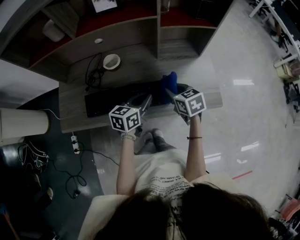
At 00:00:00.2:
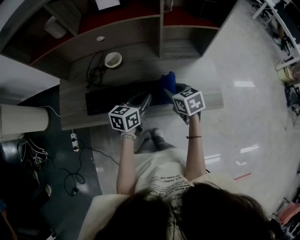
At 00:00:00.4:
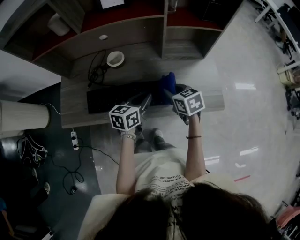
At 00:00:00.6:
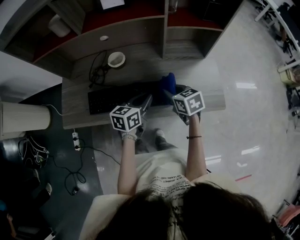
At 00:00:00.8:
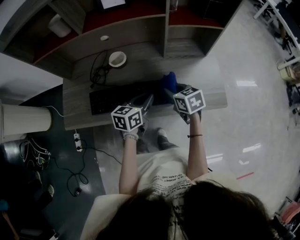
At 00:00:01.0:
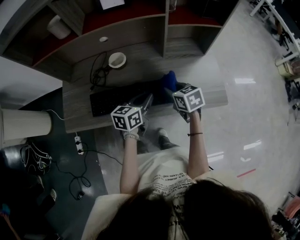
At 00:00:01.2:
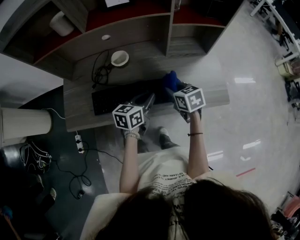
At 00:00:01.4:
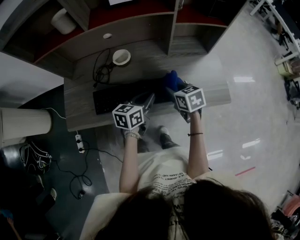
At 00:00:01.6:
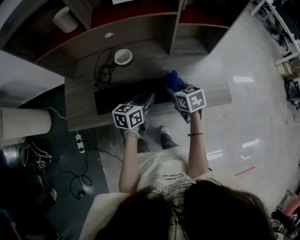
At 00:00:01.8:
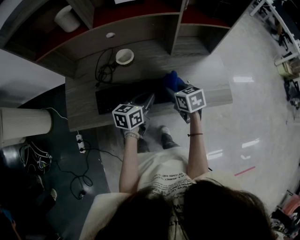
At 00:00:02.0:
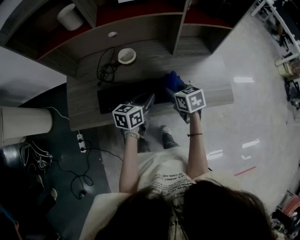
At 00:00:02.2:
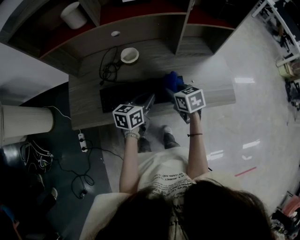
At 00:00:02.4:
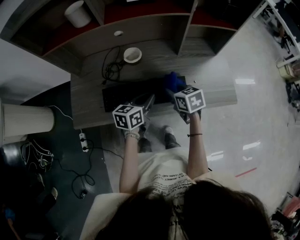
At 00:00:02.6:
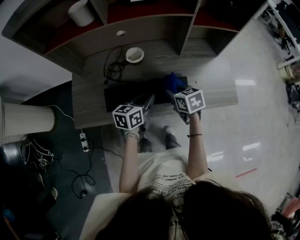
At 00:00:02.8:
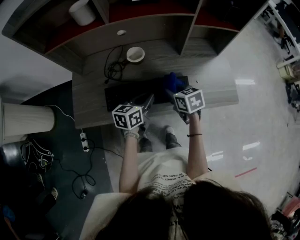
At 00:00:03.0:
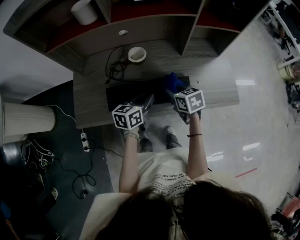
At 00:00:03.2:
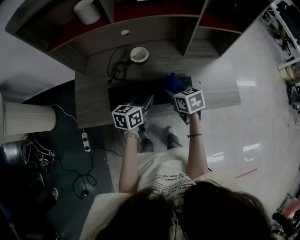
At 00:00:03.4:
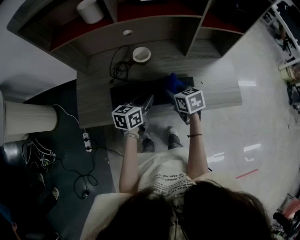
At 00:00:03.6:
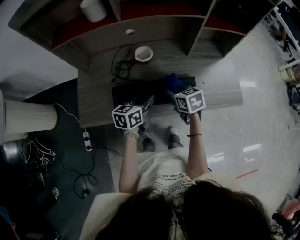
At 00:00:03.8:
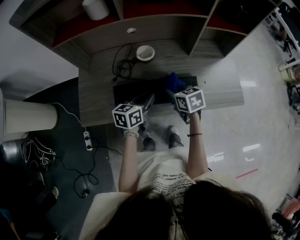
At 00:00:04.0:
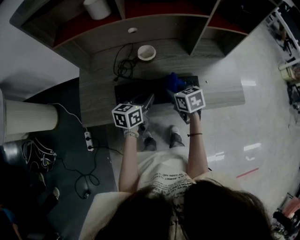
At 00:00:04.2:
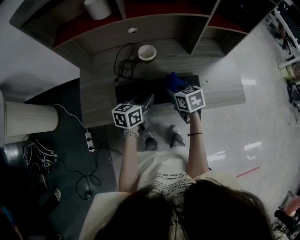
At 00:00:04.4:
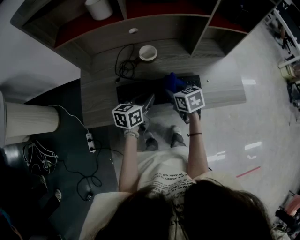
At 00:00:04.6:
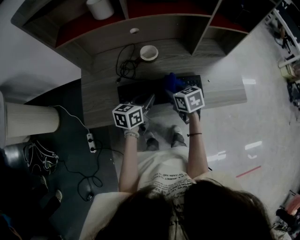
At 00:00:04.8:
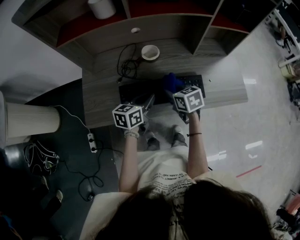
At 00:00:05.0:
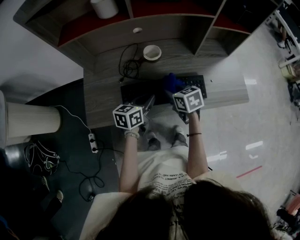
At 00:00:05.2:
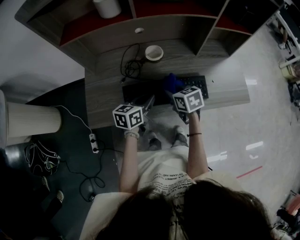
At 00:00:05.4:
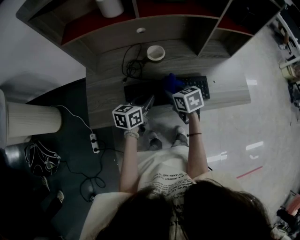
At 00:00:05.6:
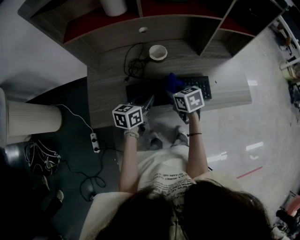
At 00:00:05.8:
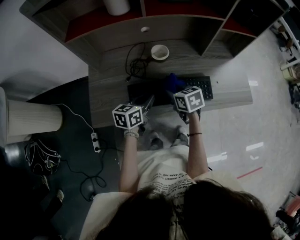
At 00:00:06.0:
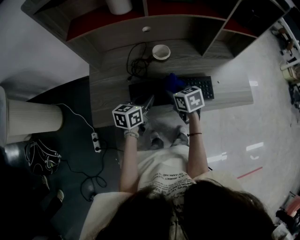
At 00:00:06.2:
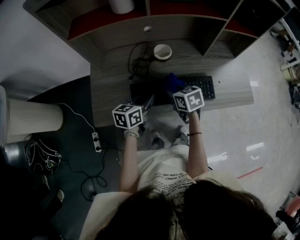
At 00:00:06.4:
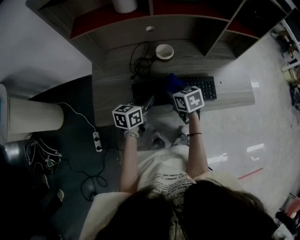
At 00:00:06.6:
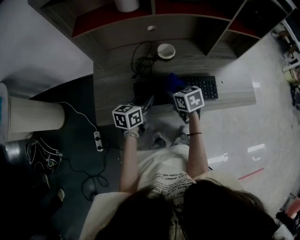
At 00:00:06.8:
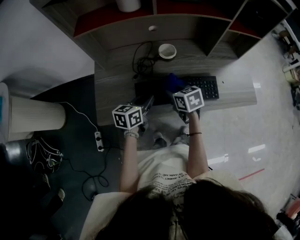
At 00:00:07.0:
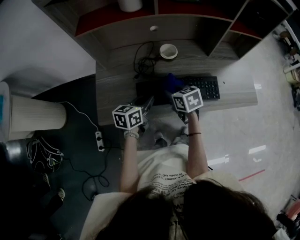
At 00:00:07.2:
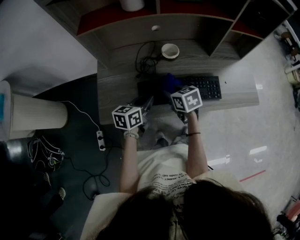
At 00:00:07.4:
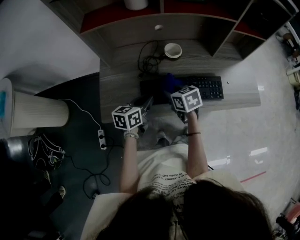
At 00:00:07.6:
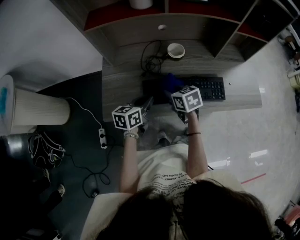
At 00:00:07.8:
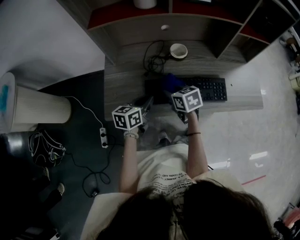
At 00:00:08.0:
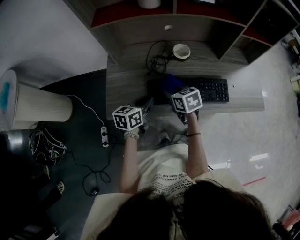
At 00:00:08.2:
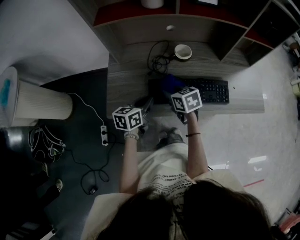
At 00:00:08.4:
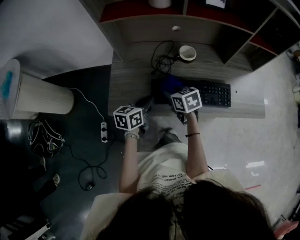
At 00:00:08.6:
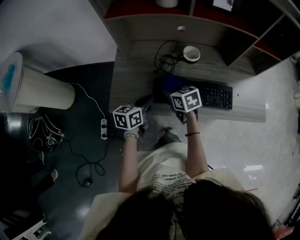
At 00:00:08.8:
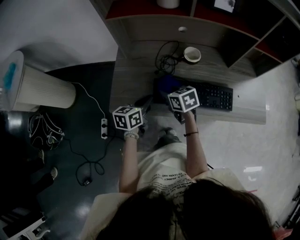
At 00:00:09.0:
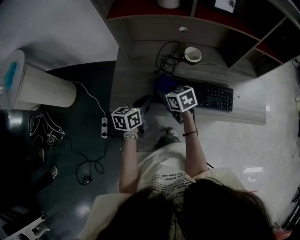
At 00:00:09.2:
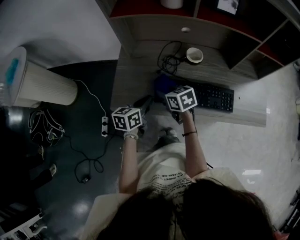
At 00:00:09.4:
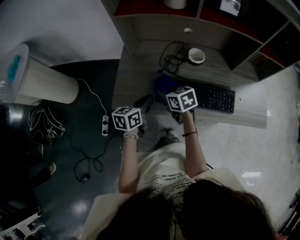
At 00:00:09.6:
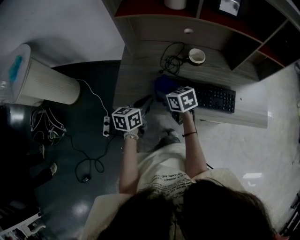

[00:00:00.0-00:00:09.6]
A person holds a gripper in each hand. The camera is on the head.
00:00:00.0 to 00:00:01.6: Both grippers travel together to the left, some 5 cm.
00:00:01.6 to 00:00:03.2: Both grippers move to the left, some 10 cm.
00:00:03.2 to 00:00:04.8: The two grippers go some 5 cm to the left.
00:00:04.8 to 00:00:06.4: Both grippers travel together to the left, roughly 5 cm.
00:00:06.4 to 00:00:08.0: Both grippers move to the left, roughly 10 cm.
00:00:08.0 to 00:00:09.6: The right gripper is displaced to the left by some 10 cm, while the left gripper changes place by roughly 5 cm.

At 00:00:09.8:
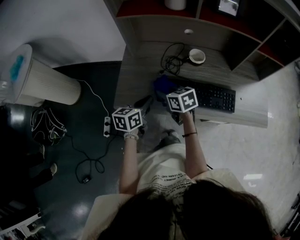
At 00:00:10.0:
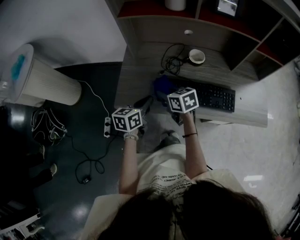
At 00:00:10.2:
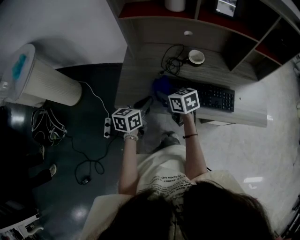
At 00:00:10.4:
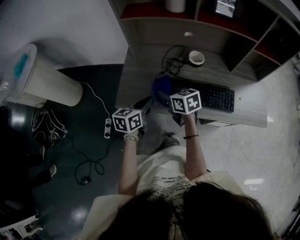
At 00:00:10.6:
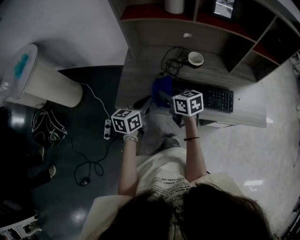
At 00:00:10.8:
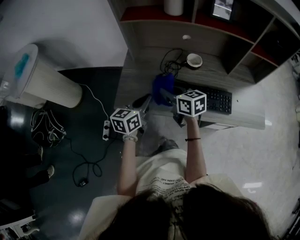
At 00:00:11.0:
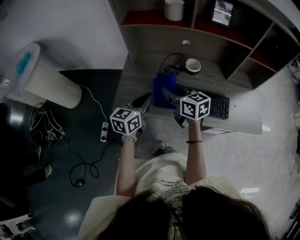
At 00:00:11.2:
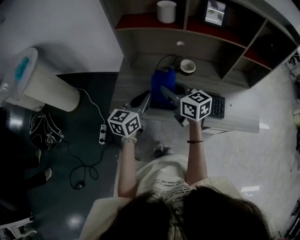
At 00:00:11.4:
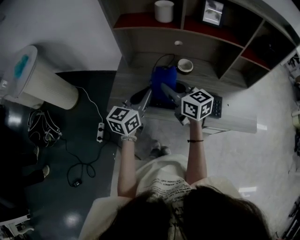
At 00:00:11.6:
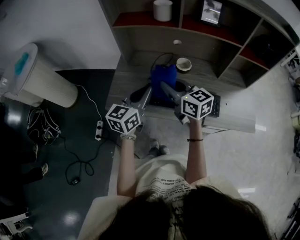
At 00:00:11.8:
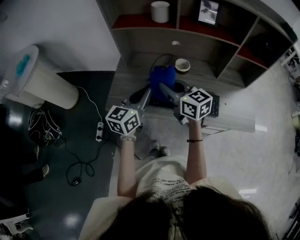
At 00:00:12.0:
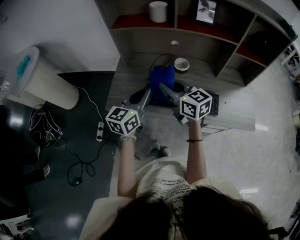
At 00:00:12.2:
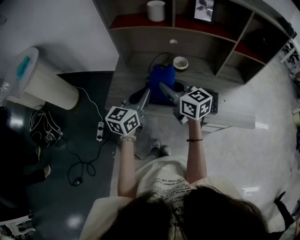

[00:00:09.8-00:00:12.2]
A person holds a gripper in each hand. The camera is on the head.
00:00:09.8 to 00:00:11.0: Both grippers travel together upward, about 10 cm. The right gripper swivels roughly 20 degrees.
00:00:11.0 to 00:00:12.2: The two grippers go approximately 10 cm upward and to the right.

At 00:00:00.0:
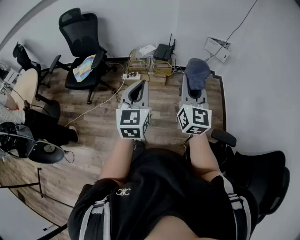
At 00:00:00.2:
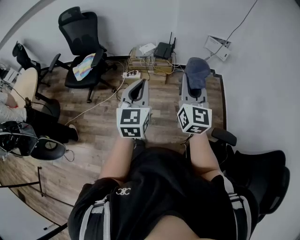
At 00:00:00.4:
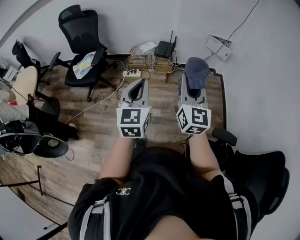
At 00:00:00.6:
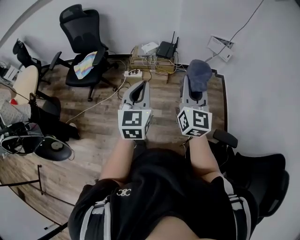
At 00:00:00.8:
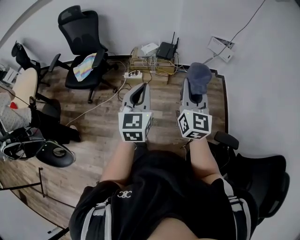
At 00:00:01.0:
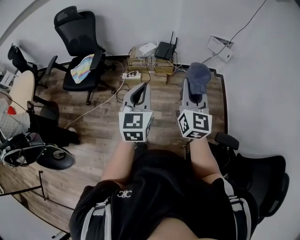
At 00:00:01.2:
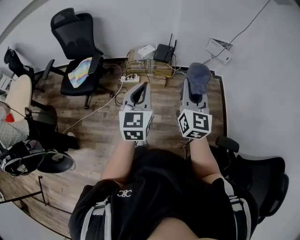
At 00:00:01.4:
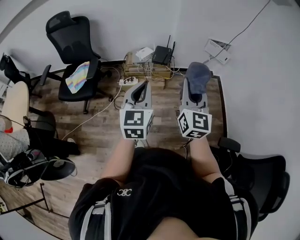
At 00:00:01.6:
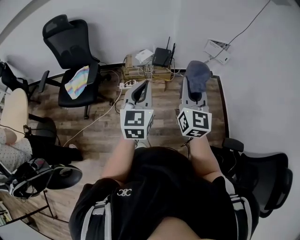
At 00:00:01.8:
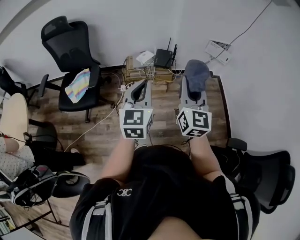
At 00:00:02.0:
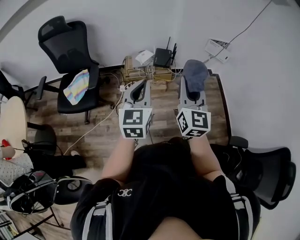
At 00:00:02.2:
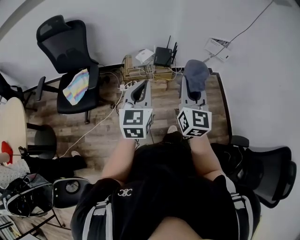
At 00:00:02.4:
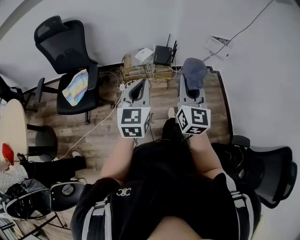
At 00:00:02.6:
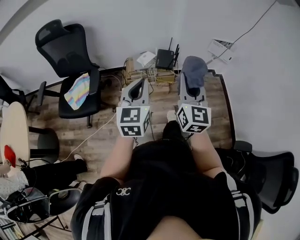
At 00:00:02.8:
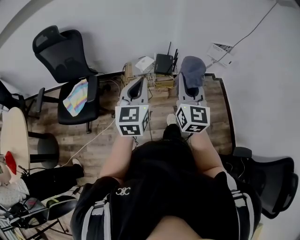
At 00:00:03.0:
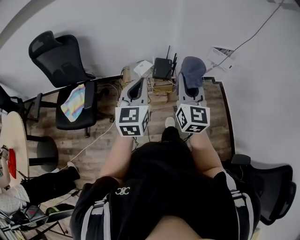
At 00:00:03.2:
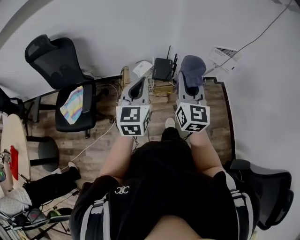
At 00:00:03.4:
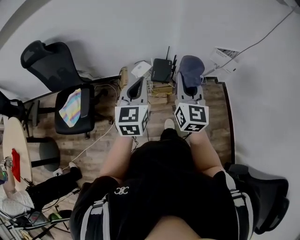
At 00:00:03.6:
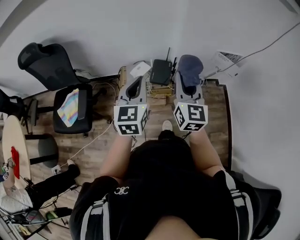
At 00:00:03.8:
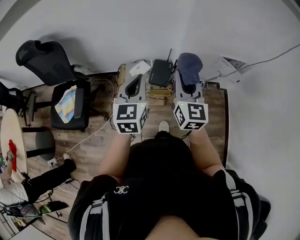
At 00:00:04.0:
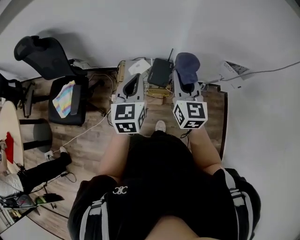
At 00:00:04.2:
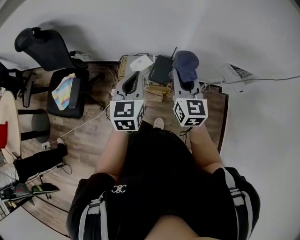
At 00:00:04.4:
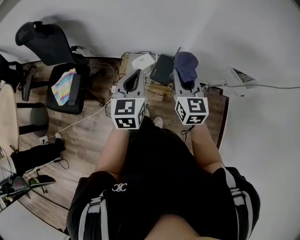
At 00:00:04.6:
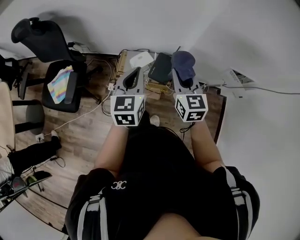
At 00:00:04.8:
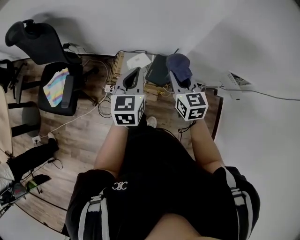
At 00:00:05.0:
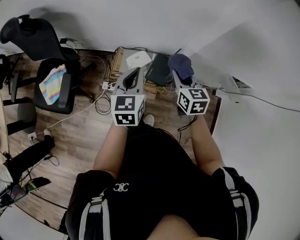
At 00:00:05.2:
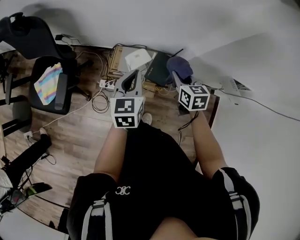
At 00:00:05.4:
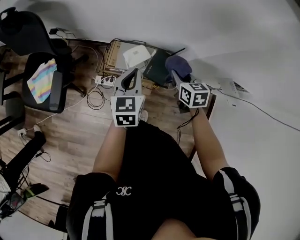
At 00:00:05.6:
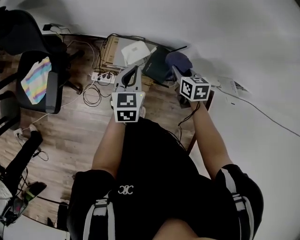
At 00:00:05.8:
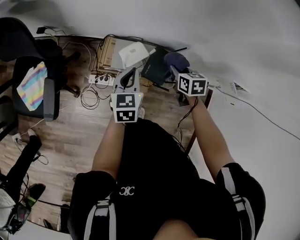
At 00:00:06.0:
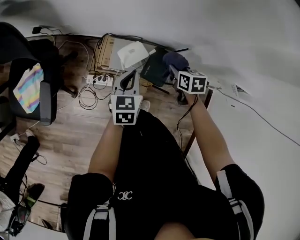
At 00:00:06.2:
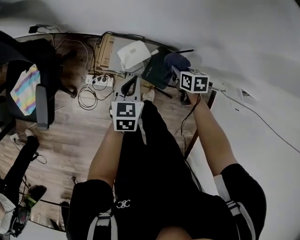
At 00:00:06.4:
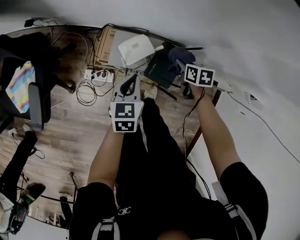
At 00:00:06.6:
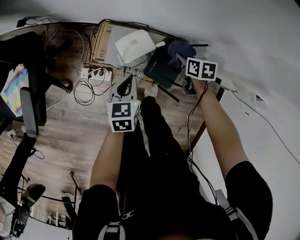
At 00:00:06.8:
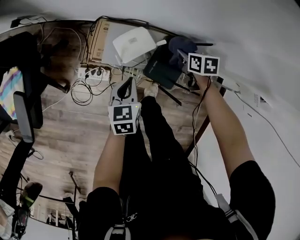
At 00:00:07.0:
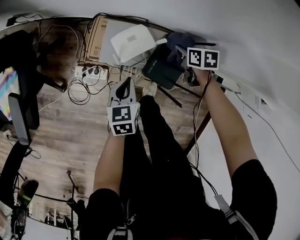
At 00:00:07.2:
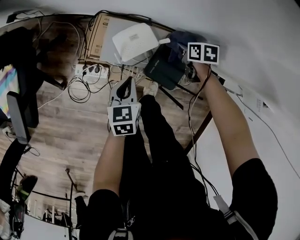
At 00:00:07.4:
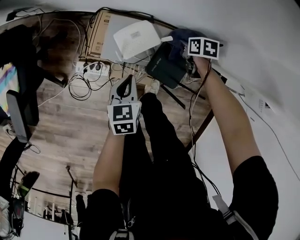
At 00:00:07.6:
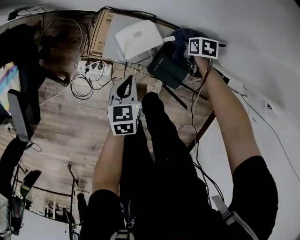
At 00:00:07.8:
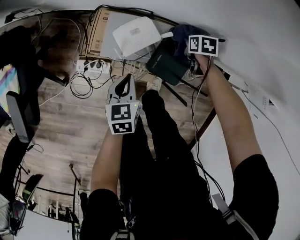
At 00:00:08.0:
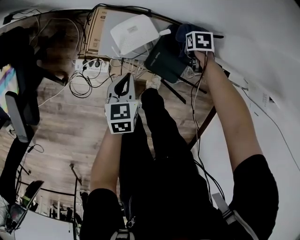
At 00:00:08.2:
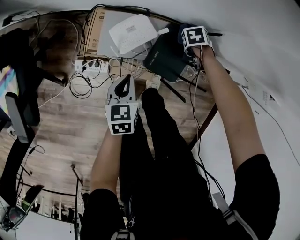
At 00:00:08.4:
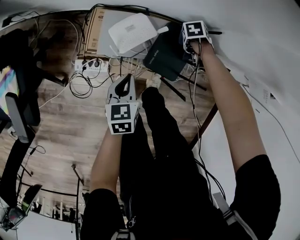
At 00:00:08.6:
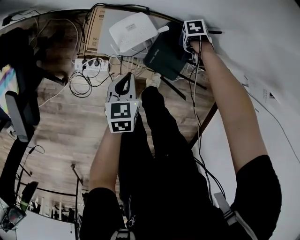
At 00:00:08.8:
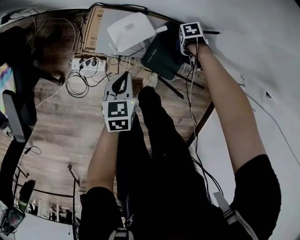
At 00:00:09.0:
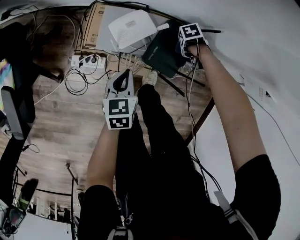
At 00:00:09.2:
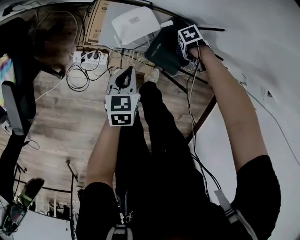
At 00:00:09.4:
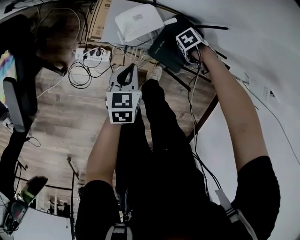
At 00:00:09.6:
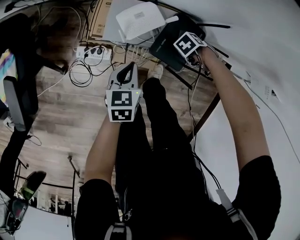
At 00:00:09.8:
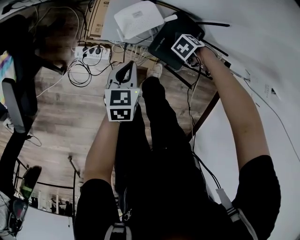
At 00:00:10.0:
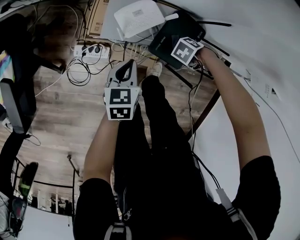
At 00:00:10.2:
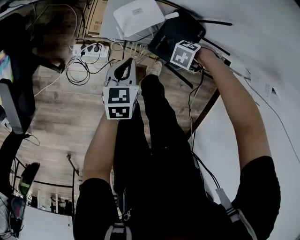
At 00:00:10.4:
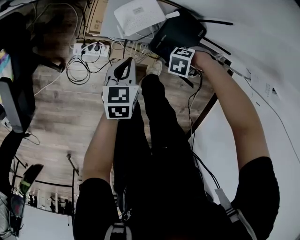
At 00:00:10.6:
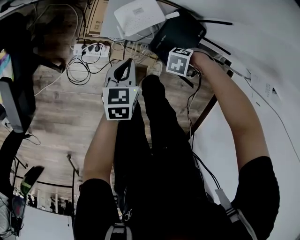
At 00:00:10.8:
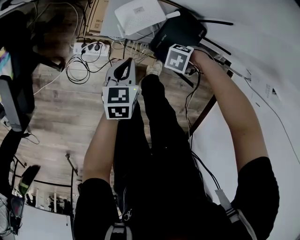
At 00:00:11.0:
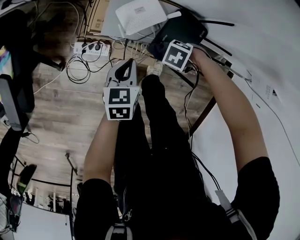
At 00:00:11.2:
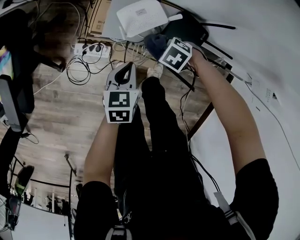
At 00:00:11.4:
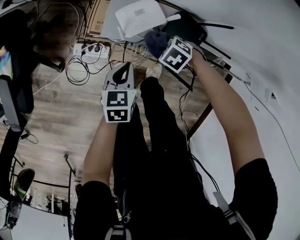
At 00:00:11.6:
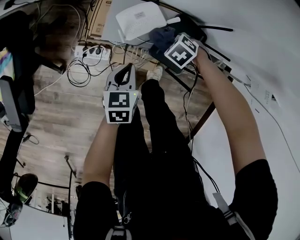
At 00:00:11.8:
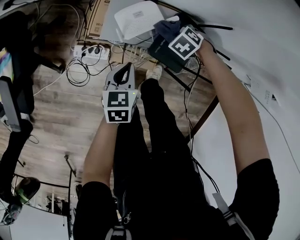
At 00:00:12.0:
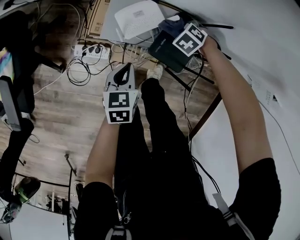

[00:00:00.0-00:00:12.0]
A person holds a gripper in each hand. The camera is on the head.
00:00:00.0 to 00:00:01.6: The grippers both shift forward and to the left by approximately 20 cm.
00:00:01.6 to 00:00:03.0: Both grippers move forward, approximately 20 cm.
00:00:03.0 to 00:00:04.4: The grippers both shift forward by some 30 cm. The right gripper turns by approximately 30 degrees.
00:00:04.4 to 00:00:06.0: The two grippers go approximately 35 cm downward and forward. The left gripper changes its angle by some 20 degrees, while the right gripper tips its fingers downward by approximately 50 degrees.
00:00:06.0 to 00:00:07.6: Both grippers travel together downward, about 25 cm.
00:00:07.6 to 00:00:09.0: The right gripper ends up some 10 cm from where it was, and rotates roughly 40 degrees.
00:00:09.0 to 00:00:10.4: The right gripper shifts about 15 cm to the right and backward, and rolls counterclockwise, seen from behind, by some 70 degrees.
00:00:10.4 to 00:00:12.0: The right gripper changes place by about 20 cm, and turns by some 40 degrees.
